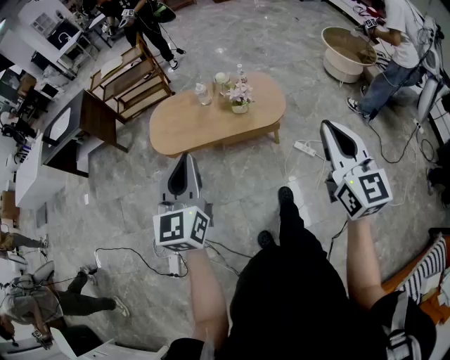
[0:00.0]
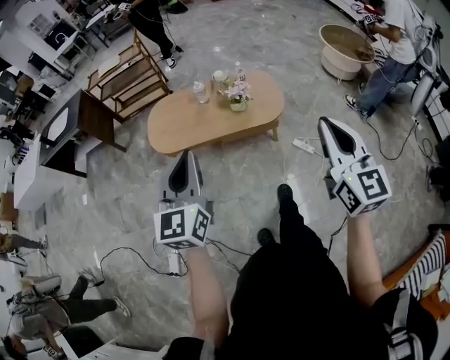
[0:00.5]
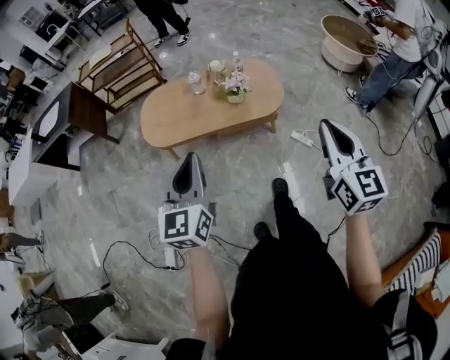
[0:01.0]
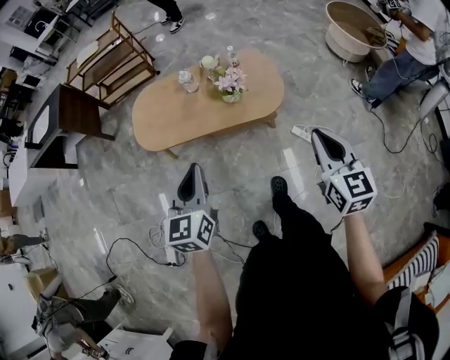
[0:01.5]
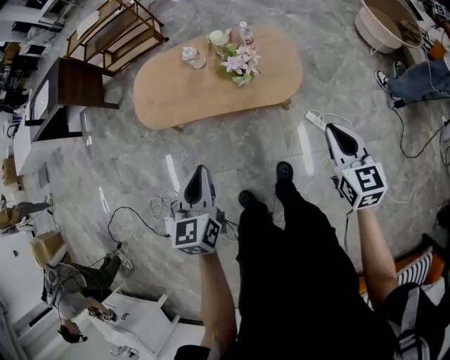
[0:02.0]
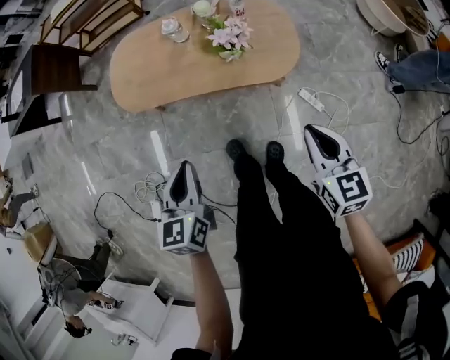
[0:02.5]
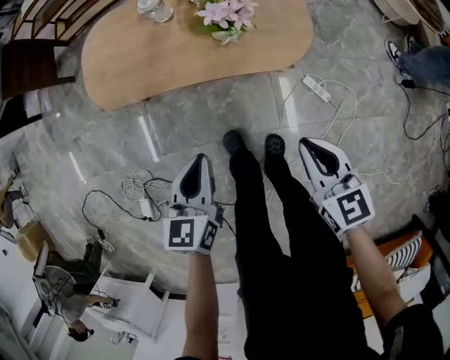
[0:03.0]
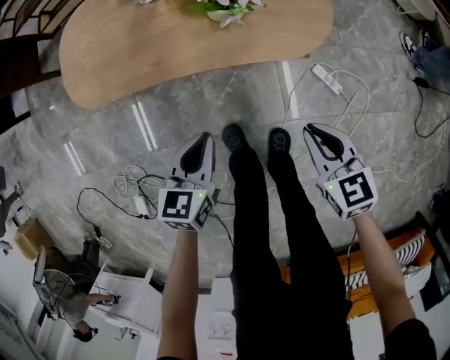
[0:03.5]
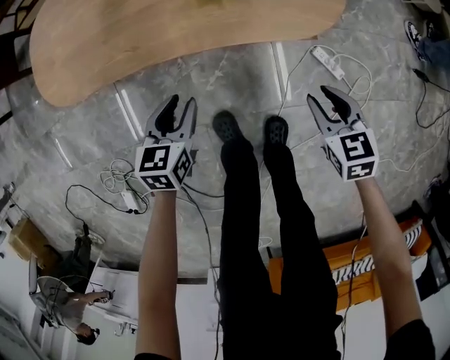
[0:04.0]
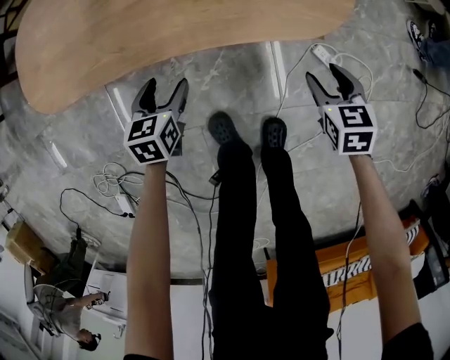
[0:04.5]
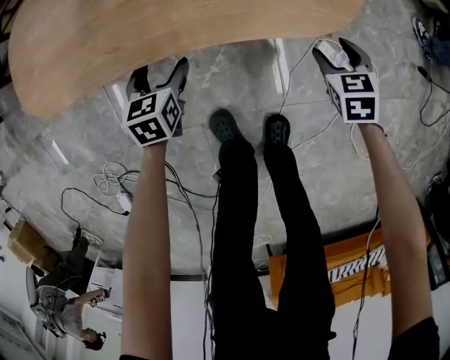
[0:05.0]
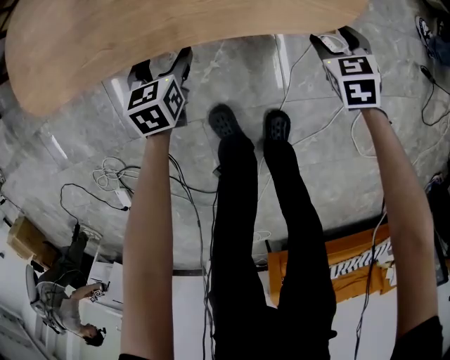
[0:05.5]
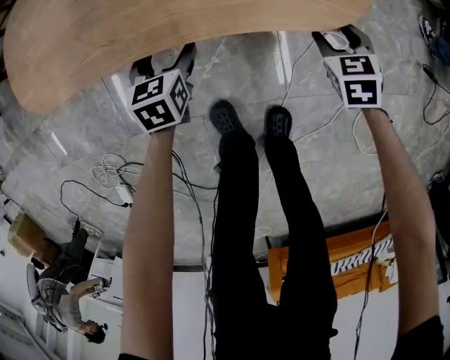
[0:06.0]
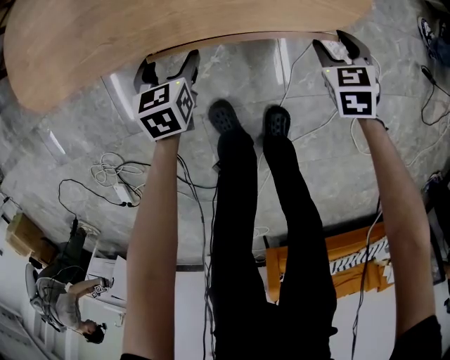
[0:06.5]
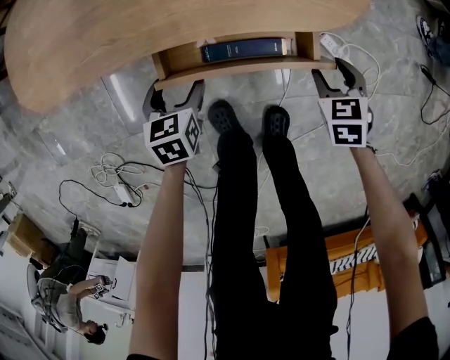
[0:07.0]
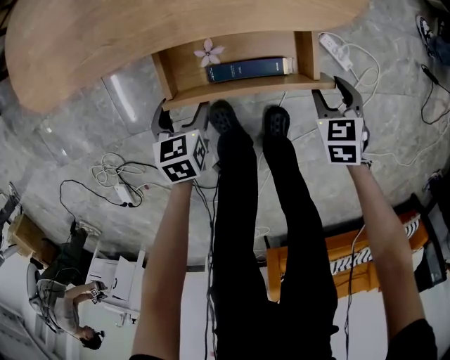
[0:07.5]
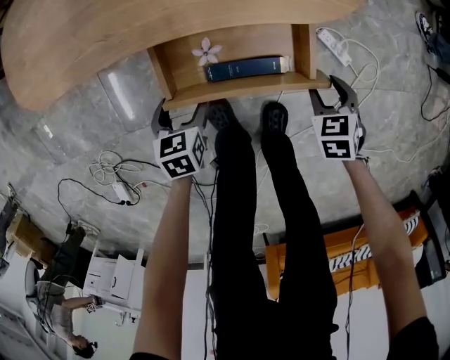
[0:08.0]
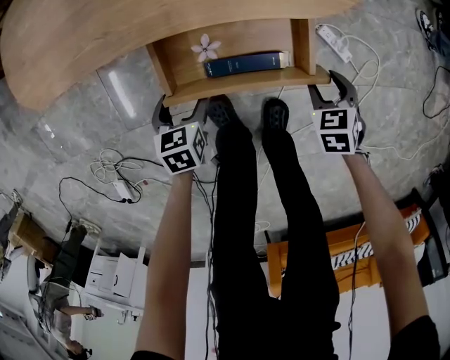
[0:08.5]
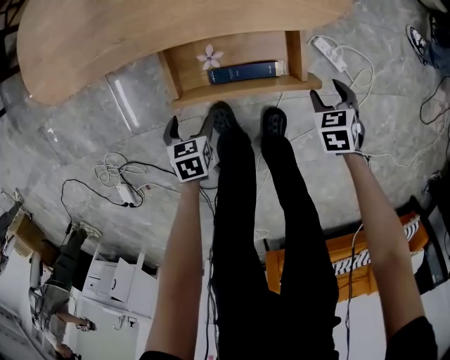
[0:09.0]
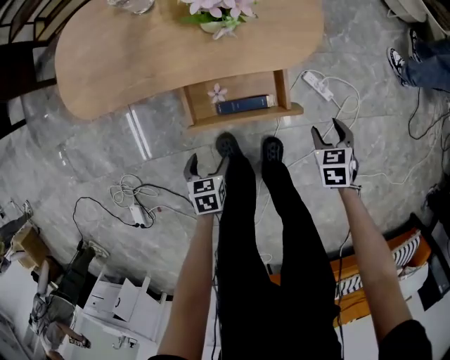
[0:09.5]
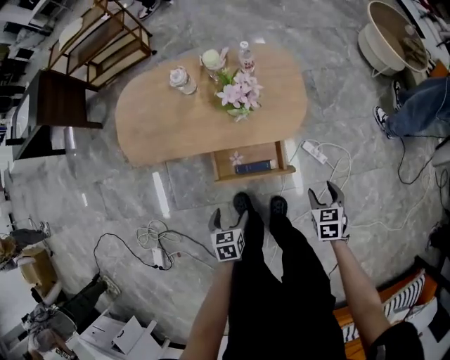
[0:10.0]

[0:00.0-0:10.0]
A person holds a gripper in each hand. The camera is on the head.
0.0 to 2.0 s: The left gripper moves downward and forward, about 25 cm, and turns by approximately 30 degrees. The right gripper moves forward and downward, approximately 35 cm, and swivels roughly 30 degrees.
2.0 to 4.0 s: Both grippers move downward, approximately 50 cm. The left gripper turns by roughly 20 degrees; the right gripper rotates roughly 30 degrees, and opens up.
4.0 to 6.0 s: The right gripper shifts about 15 cm forward and downward, and opens its fingers. The left gripper is displaced downward and forward by approximately 15 cm, and opens up.
6.0 to 8.0 s: The grippers both shift backward by about 15 cm.
8.0 to 10.0 s: Both grippers move upward, roughly 30 cm.

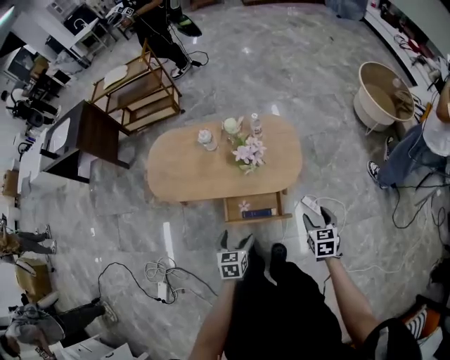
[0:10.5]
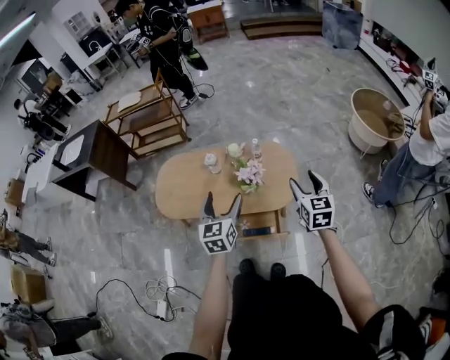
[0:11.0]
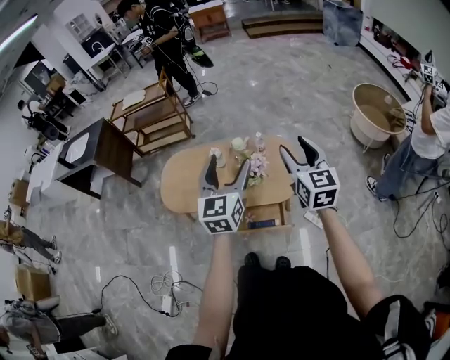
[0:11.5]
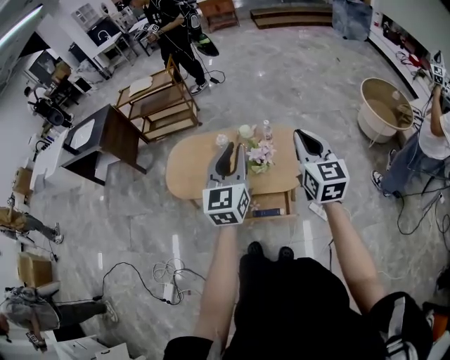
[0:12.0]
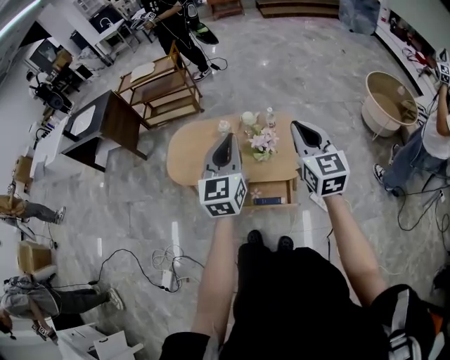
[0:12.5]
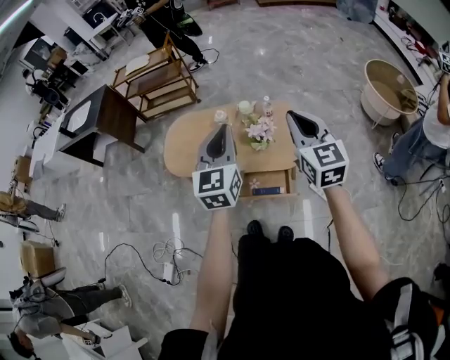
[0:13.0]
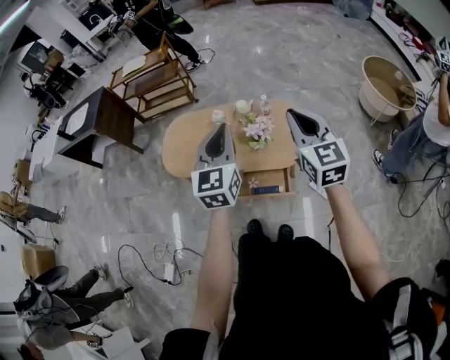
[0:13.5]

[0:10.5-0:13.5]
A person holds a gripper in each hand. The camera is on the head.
10.5 to 12.0 s: The grippers both shift upward by about 40 cm. The left gripper tips its fingers upward by approximately 50 degrees, and closes. The right gripper angles its fingers upward, by approximately 40 degrees, and closes.
12.0 to 13.5 s: The grippers stay close to where they were, moving slightly.

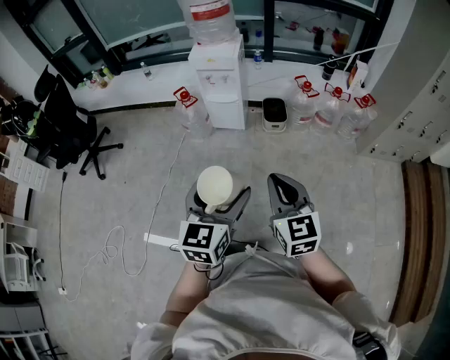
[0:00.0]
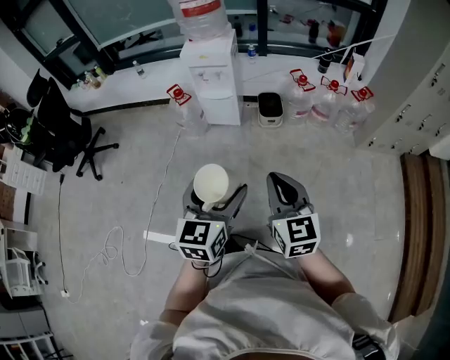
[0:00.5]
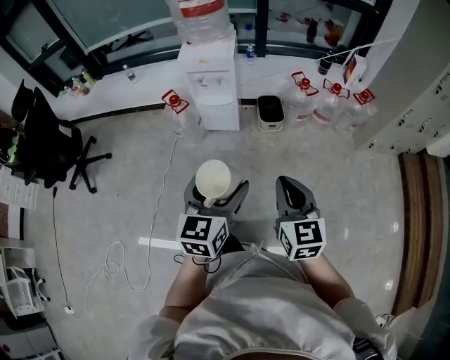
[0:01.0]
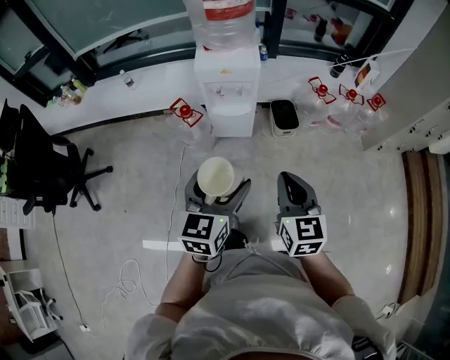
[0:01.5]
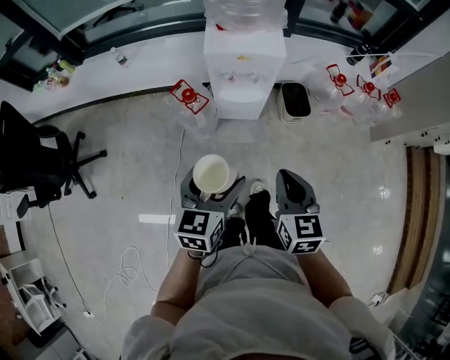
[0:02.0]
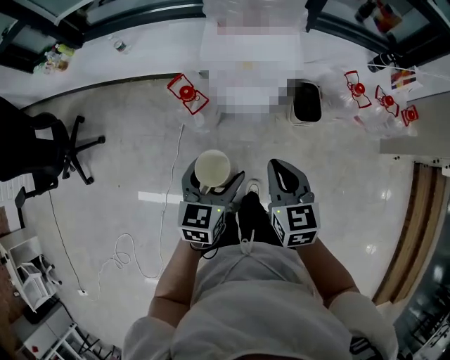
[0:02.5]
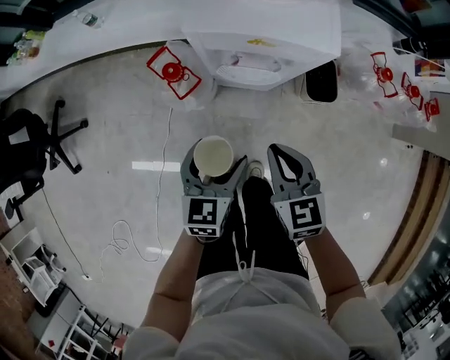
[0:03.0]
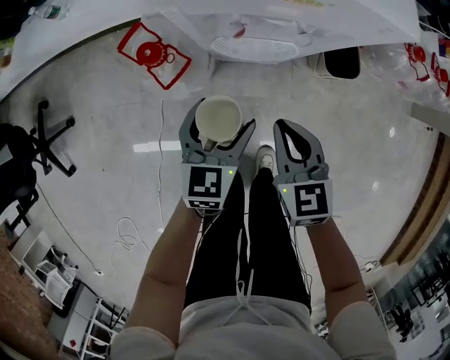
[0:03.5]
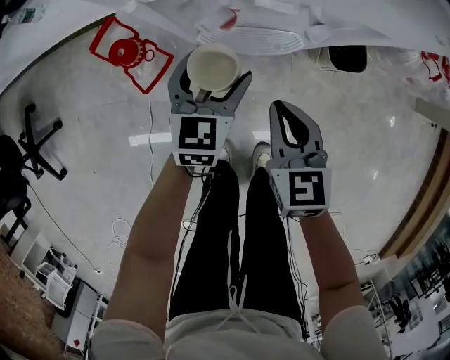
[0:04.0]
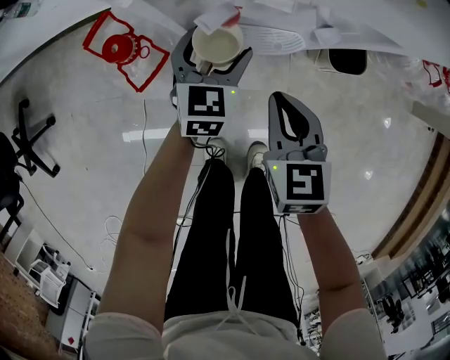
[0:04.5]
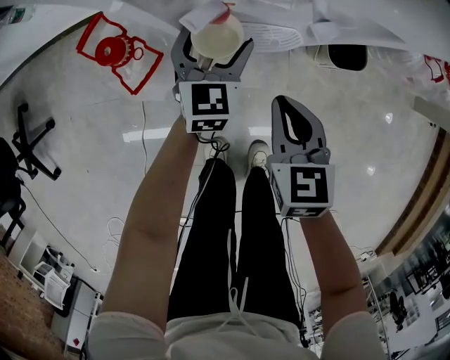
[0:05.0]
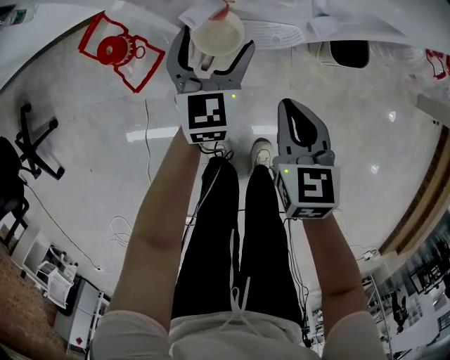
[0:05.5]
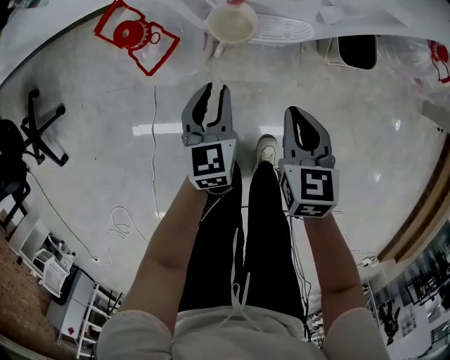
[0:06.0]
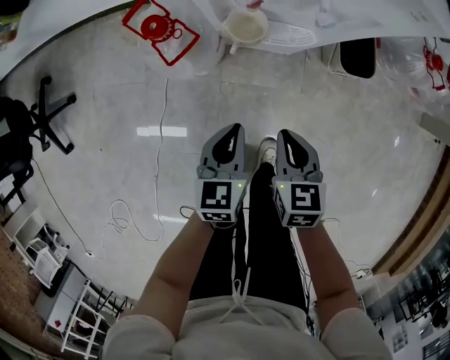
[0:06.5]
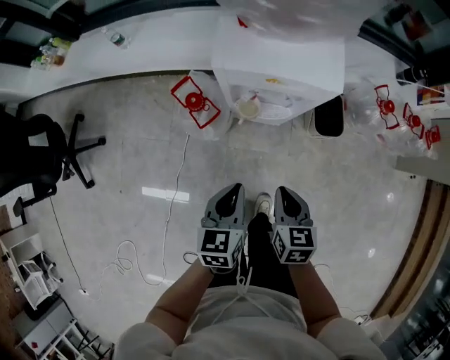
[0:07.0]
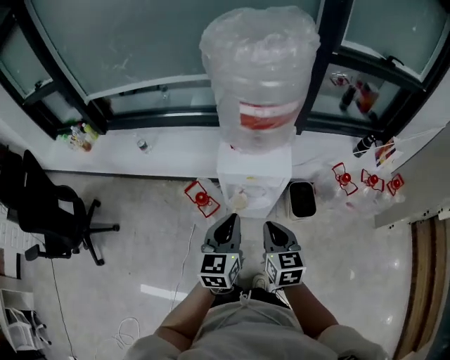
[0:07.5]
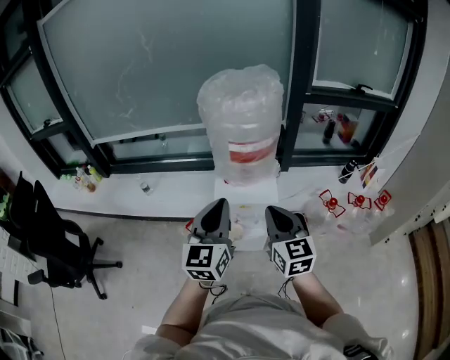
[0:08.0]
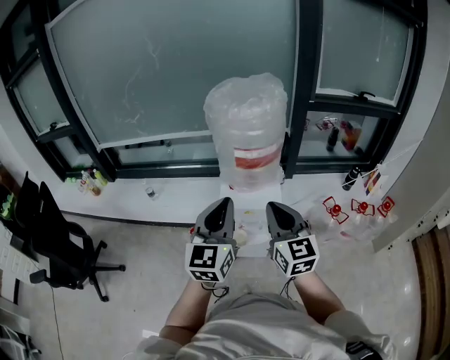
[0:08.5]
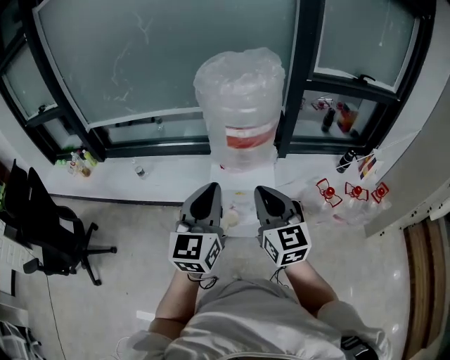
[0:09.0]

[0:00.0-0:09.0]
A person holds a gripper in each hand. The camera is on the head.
0.0 to 2.0 s: The two grippers go some 40 cm forward and to the left. The right gripper swivels approximately 20 degrees.
2.0 to 4.5 s: The two grippers go about 50 cm downward and forward.
4.5 to 7.0 s: The right gripper heads backward and upward, covering approximately 20 cm, while the left gripper goes some 35 cm backward and upward, turns by roughly 30 degrees, and closes.
7.0 to 9.0 s: The grippers both shift upward by some 40 cm. The right gripper points its fingers about 40 degrees further upward, while the left gripper tips its fingers upward by approximately 40 degrees.

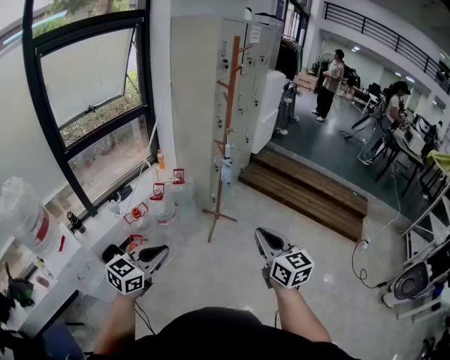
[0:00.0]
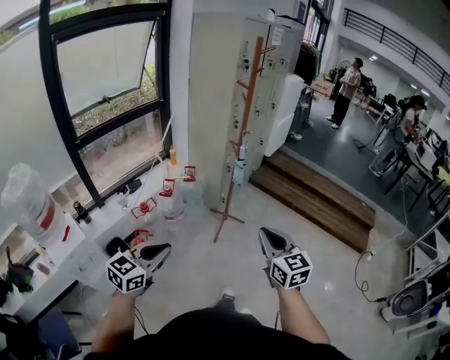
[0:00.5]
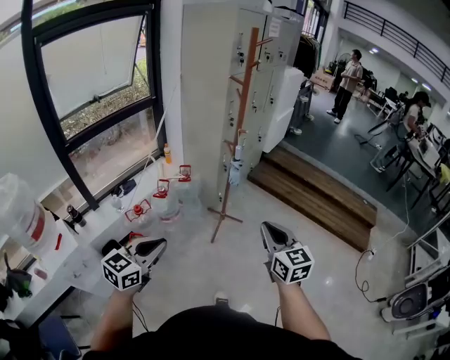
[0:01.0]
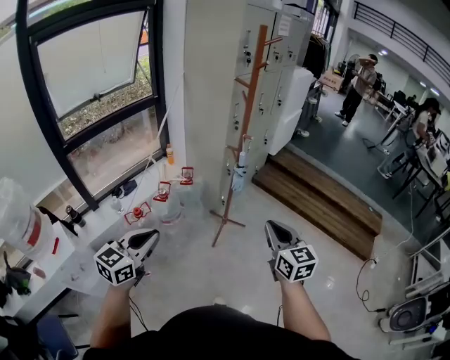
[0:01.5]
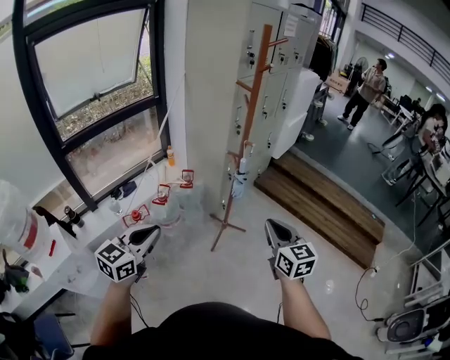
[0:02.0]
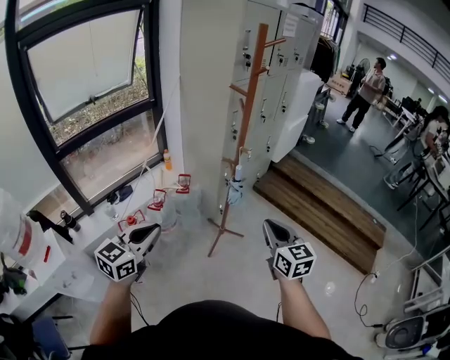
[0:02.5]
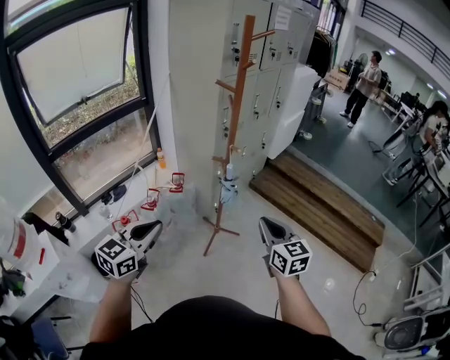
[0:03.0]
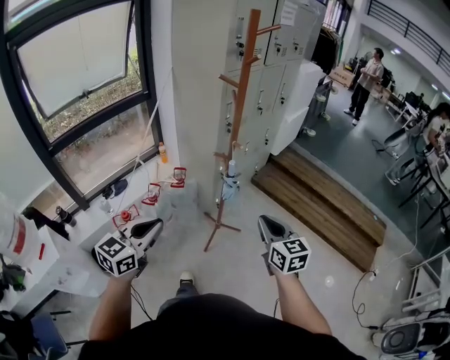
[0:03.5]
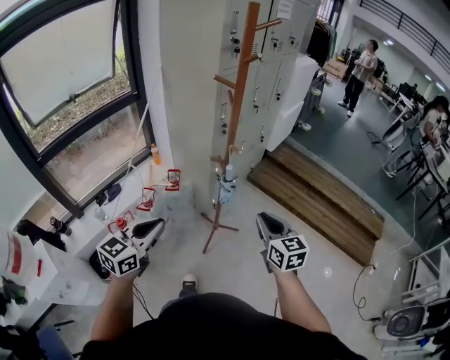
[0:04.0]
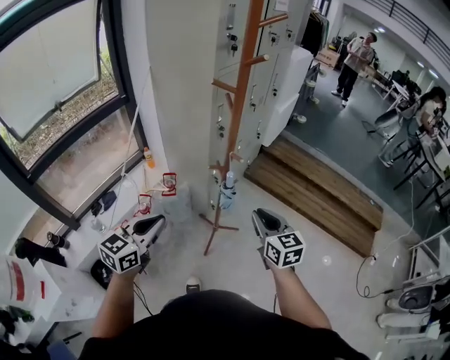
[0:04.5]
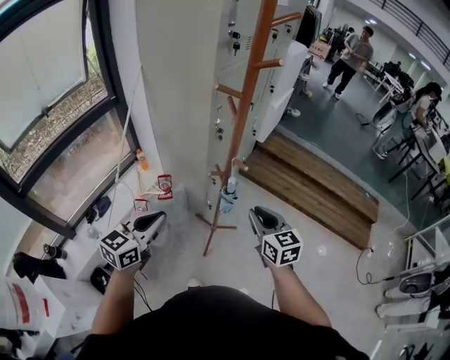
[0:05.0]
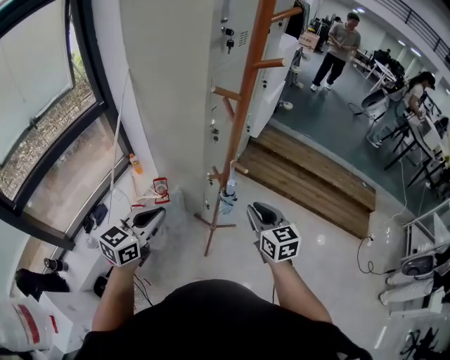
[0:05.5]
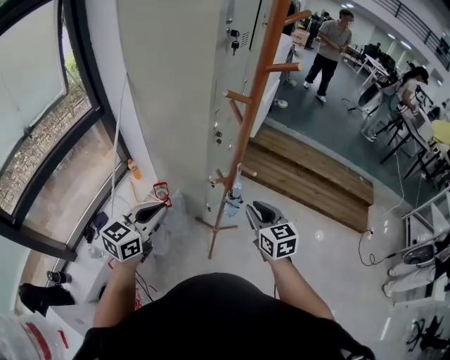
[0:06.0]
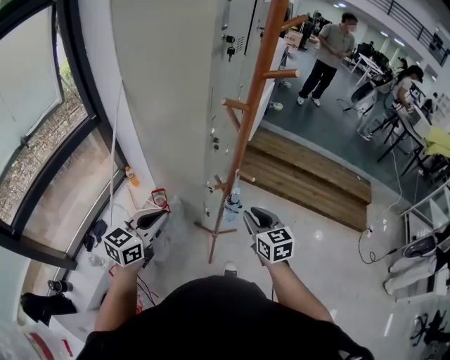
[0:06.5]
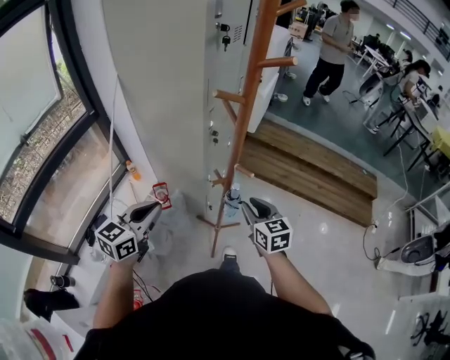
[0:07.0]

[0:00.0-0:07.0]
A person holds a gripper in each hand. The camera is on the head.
0.0 to 2.0 s: The two grippers go approximately 30 cm forward.
2.0 to 3.5 s: Both grippers travel together forward and to the right, about 15 cm.
3.5 to 5.0 s: The left gripper shifts some 25 cm forward. Meanwhile the right gripper shifts about 20 cm forward and to the left.
5.0 to 7.0 s: The left gripper goes approximately 15 cm forward and to the left; the right gripper heads forward, downward and to the left, covering roughly 10 cm.
